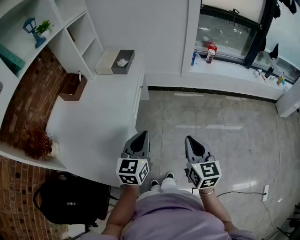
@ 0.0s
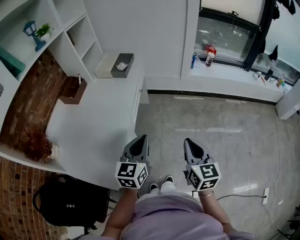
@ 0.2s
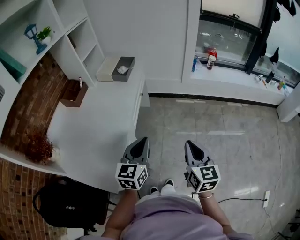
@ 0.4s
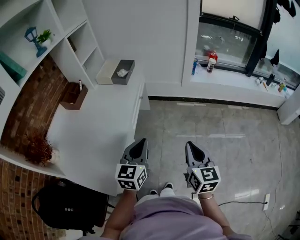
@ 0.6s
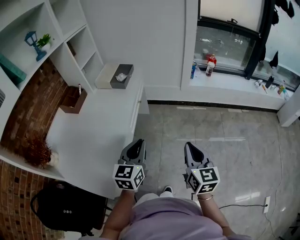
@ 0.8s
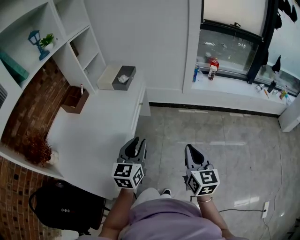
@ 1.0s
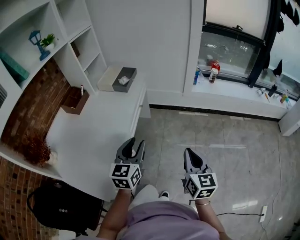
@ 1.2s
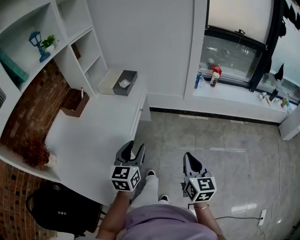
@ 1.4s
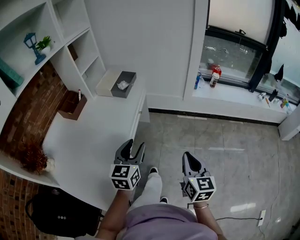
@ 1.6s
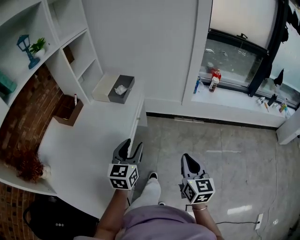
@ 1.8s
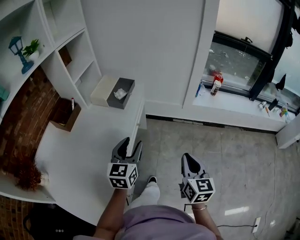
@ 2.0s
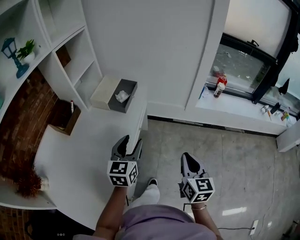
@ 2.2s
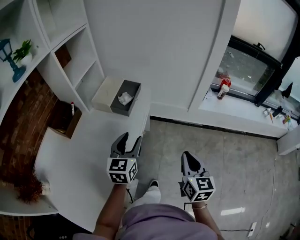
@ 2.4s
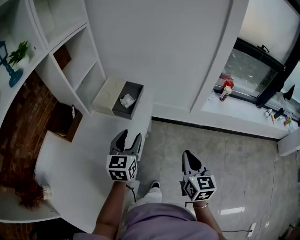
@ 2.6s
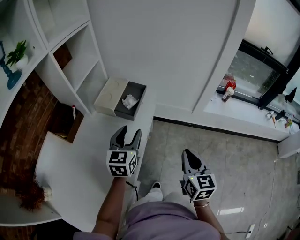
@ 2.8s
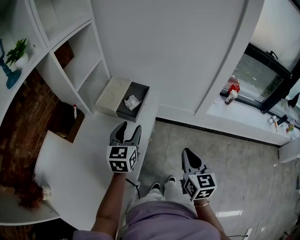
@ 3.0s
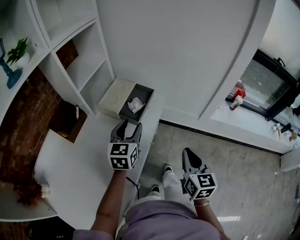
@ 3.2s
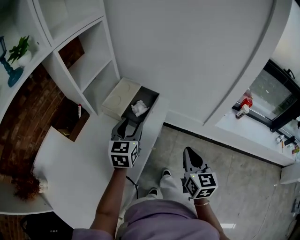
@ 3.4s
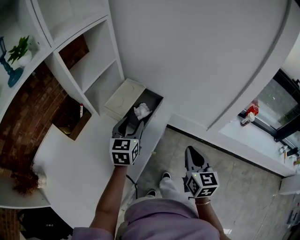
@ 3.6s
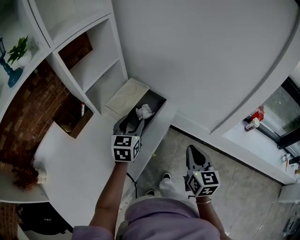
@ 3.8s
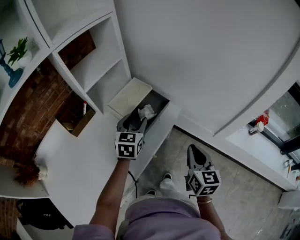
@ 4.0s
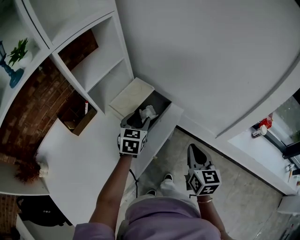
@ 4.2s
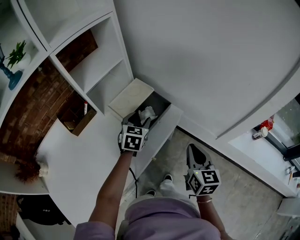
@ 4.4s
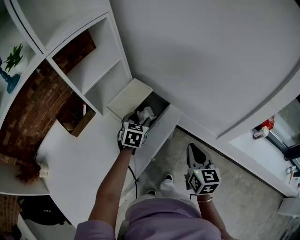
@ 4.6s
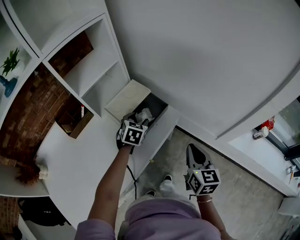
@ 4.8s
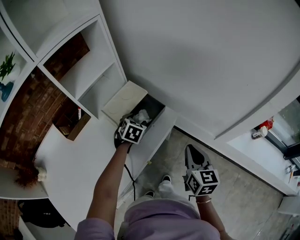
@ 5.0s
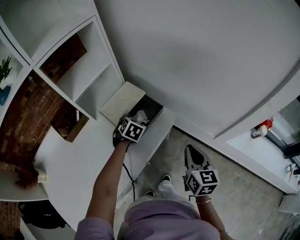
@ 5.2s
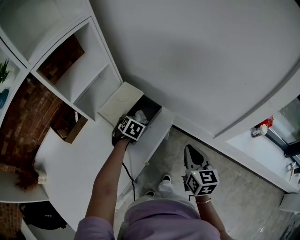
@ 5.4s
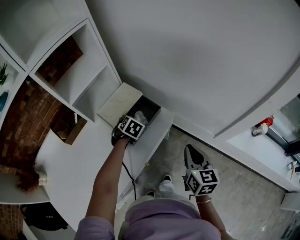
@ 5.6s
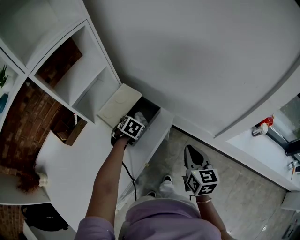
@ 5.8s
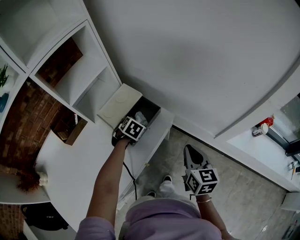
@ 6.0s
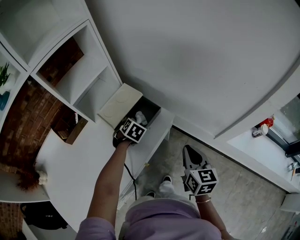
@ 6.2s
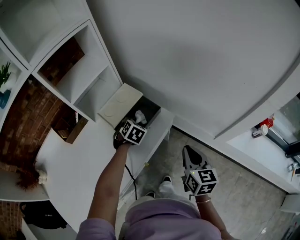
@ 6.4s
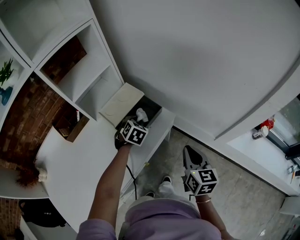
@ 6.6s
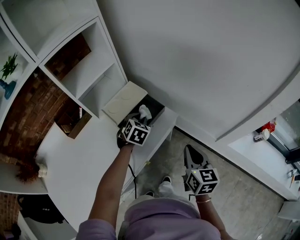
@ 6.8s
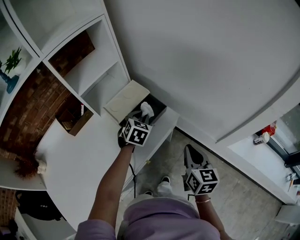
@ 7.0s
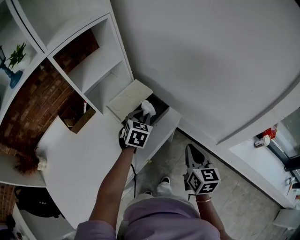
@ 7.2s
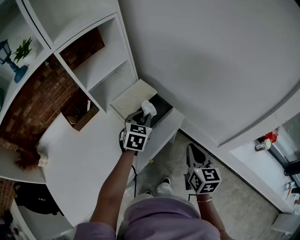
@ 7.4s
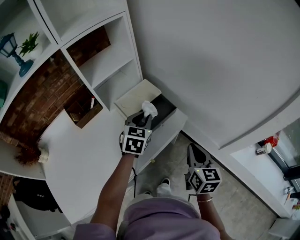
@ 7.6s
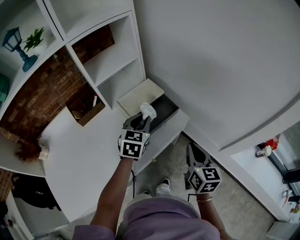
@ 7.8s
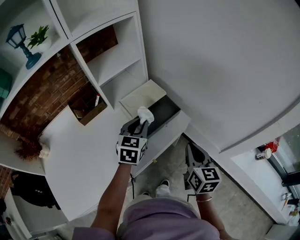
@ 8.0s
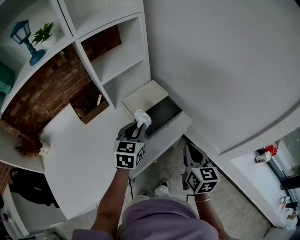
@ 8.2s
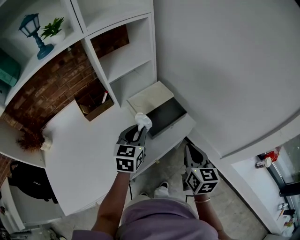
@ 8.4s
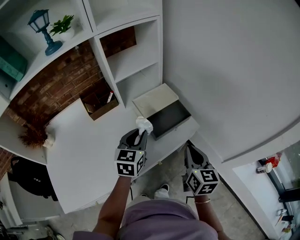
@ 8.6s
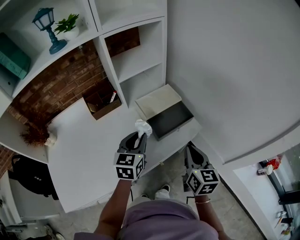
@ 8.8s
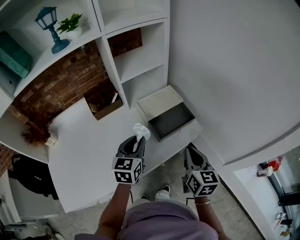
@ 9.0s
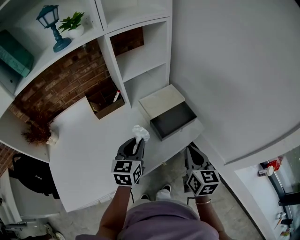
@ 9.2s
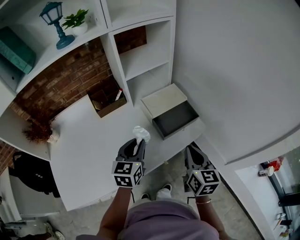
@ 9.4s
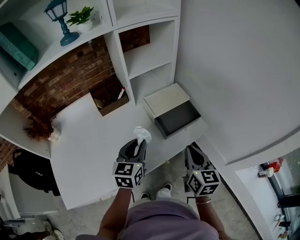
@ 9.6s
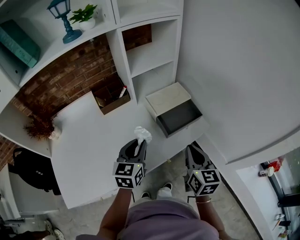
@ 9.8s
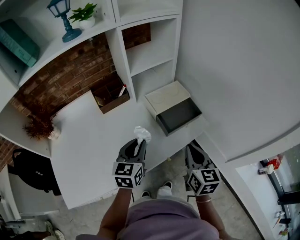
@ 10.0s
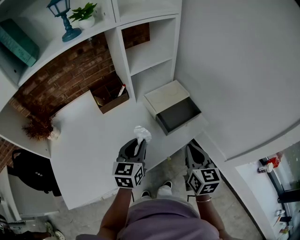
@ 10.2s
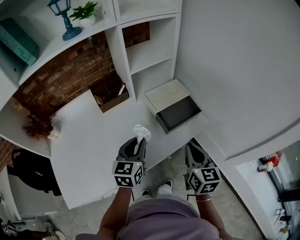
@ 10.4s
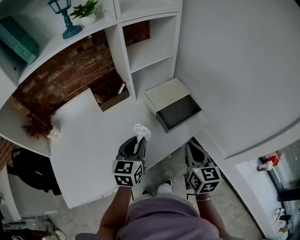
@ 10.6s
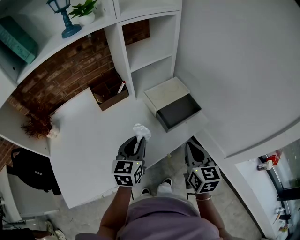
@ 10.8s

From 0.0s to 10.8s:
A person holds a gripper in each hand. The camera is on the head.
From 0.0s to 1.6s: The two grippers go about 10 cm forward. The left gripper opens.
From 1.6s to 3.0s: Both grippers move forward, approximately 30 cm.
From 3.0s to 4.6s: The left gripper heads forward and downward, covering about 20 cm, and swivels about 30 degrees, while the right gripper is displaced forward by approximately 20 cm, and rotates roughly 20 degrees.
From 4.6s to 6.2s: The left gripper heads downward, covering about 10 cm, swivels roughly 30 degrees, and closes.
From 6.2s to 7.8s: The left gripper travels upward and backward by roughly 15 cm, and tilts its fingers roughly 30 degrees upward.
From 7.8s to 9.2s: The left gripper travels to the left and backward by approximately 15 cm, and swivels roughly 20 degrees; the right gripper shifts about 10 cm to the left.
From 9.2s to 10.8s: There are only small adjustments of the grippers.

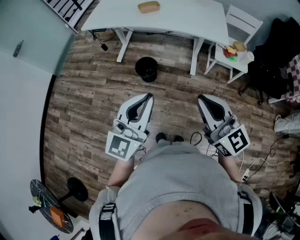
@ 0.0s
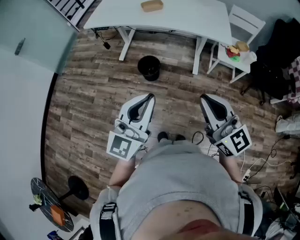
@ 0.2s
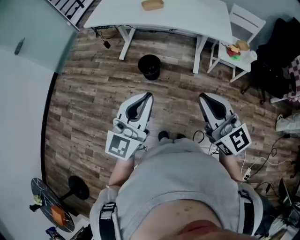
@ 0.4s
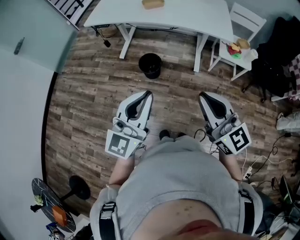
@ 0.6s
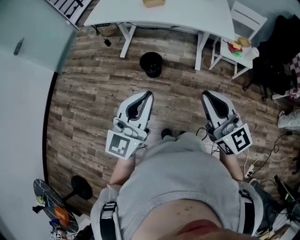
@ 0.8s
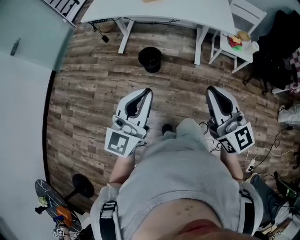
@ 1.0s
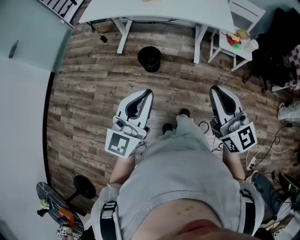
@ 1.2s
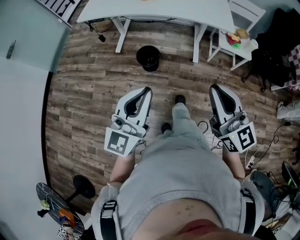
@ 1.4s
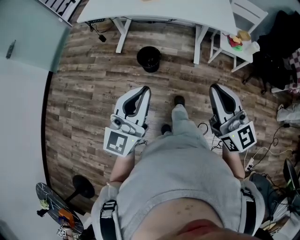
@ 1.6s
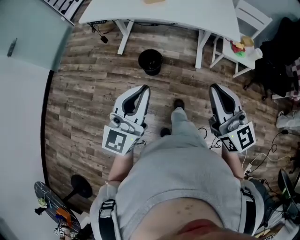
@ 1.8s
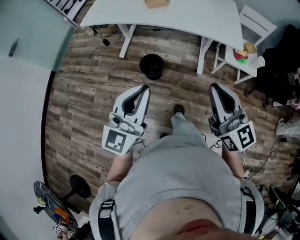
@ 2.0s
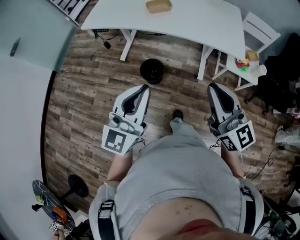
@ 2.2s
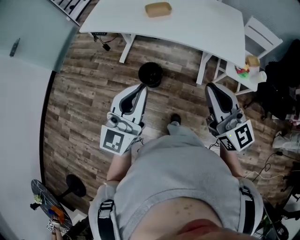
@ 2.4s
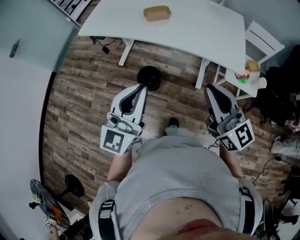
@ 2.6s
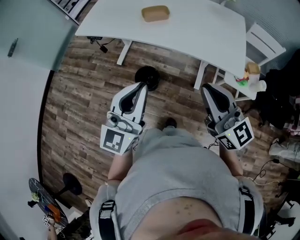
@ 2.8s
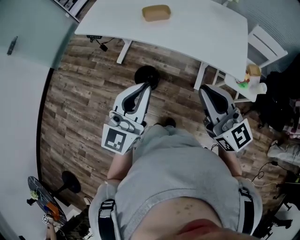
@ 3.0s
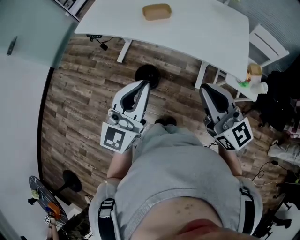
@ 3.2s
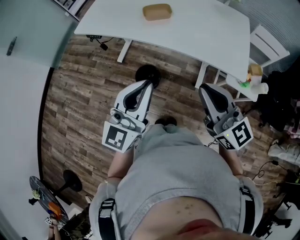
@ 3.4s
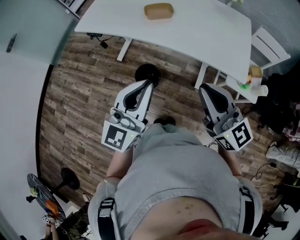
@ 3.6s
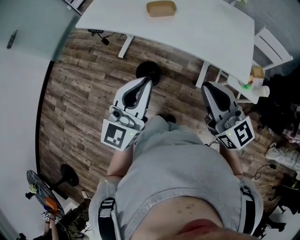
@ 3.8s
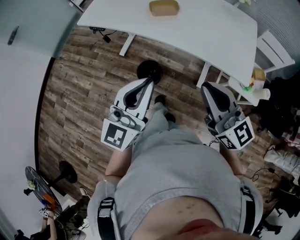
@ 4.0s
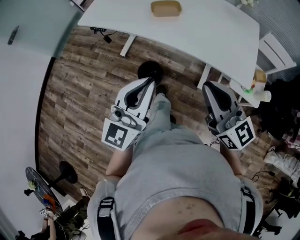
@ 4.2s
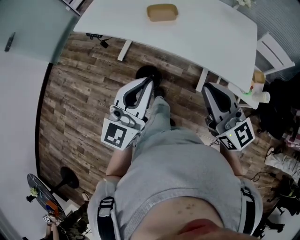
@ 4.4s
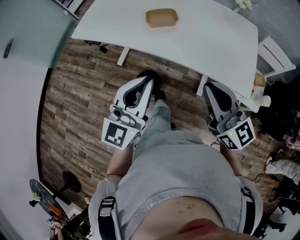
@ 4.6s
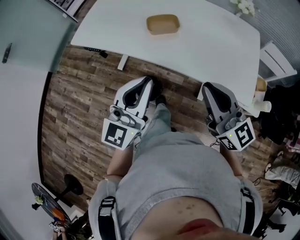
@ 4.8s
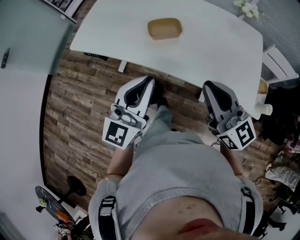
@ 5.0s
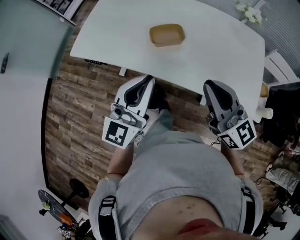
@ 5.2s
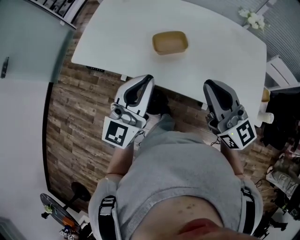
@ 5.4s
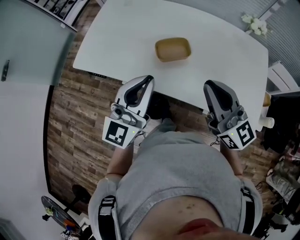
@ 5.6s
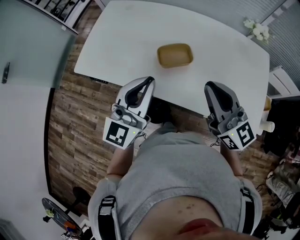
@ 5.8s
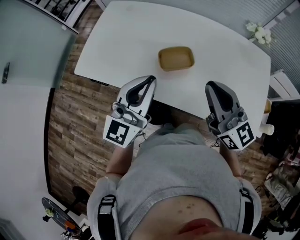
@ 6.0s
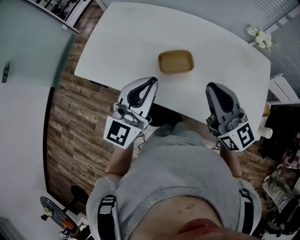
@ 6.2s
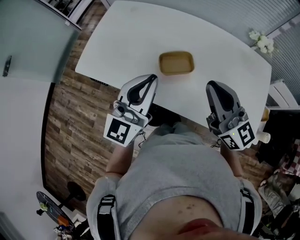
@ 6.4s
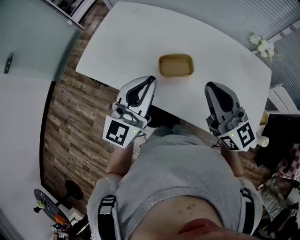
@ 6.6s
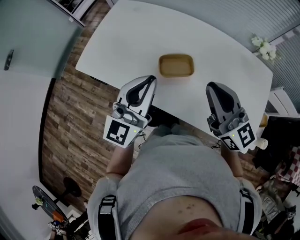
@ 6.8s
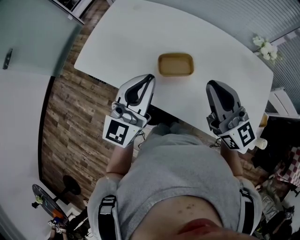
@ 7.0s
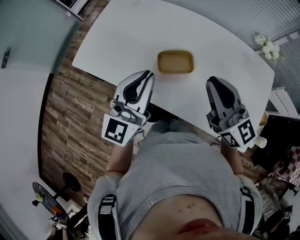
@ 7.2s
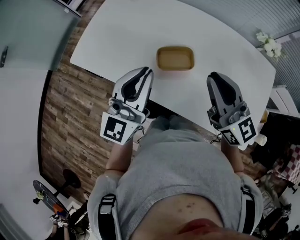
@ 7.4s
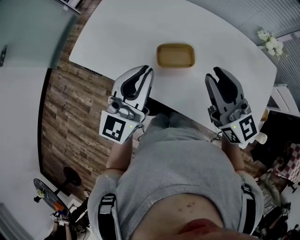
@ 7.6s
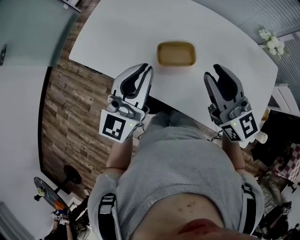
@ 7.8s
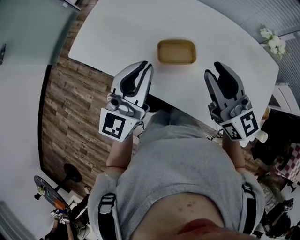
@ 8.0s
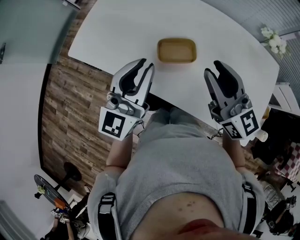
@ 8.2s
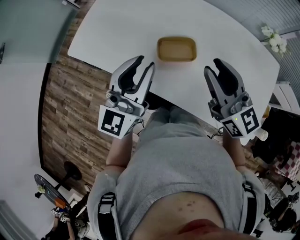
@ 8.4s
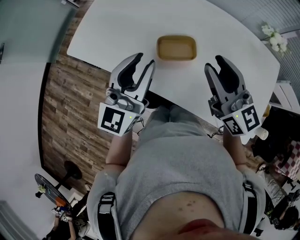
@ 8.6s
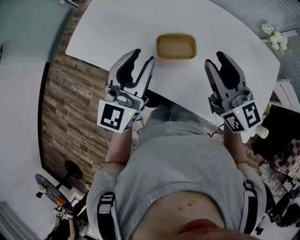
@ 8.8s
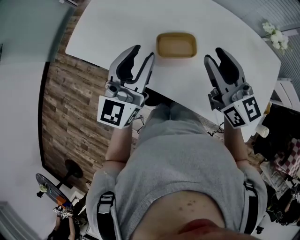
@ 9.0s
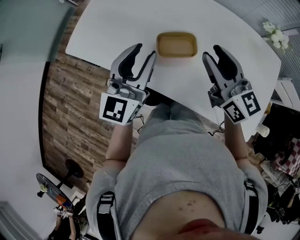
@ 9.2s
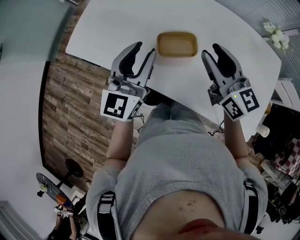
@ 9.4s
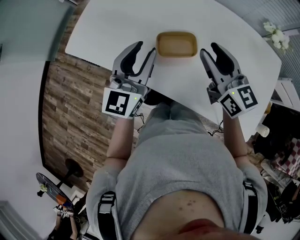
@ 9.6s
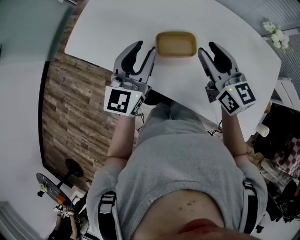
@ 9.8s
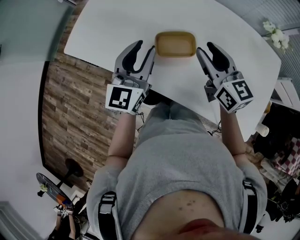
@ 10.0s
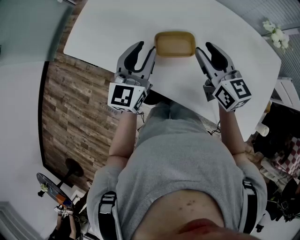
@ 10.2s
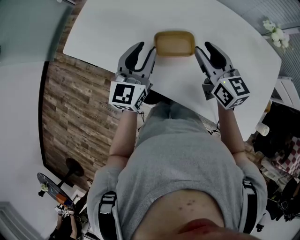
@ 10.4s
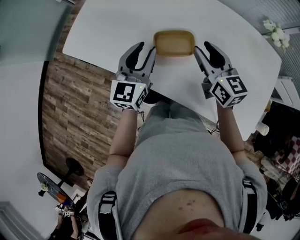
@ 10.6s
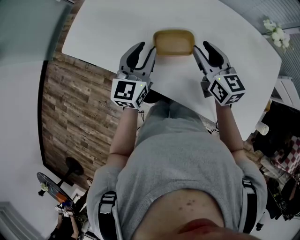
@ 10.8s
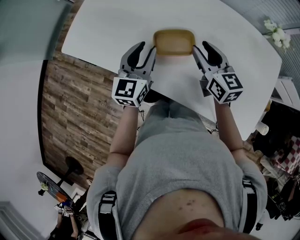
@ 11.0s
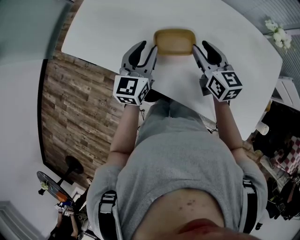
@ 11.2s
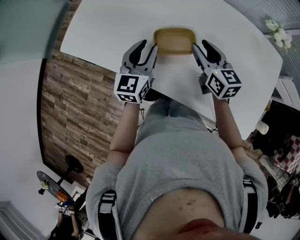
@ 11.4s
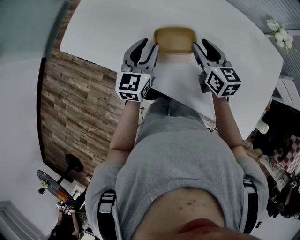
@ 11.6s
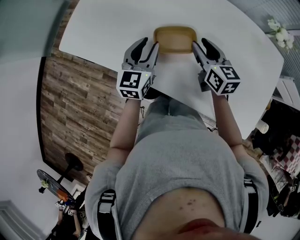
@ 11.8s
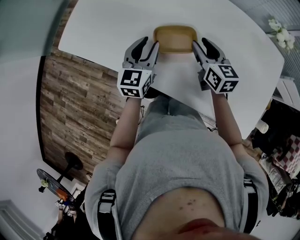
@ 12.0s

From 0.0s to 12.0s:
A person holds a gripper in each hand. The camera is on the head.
From 0.0s to 1.6s: The left gripper travels to the left by some 5 cm.
From 1.6s to 3.0s: The two grippers go about 25 cm forward.
From 3.0s to 4.4s: The grippers both shift forward by roughly 5 cm.
From 4.4s to 6.0s: Both grippers travel together forward, about 30 cm.
From 6.0s to 7.6s: The right gripper moves forward, roughly 5 cm.
From 7.6s to 9.0s: The left gripper opens up.
From 9.0s to 10.4s: The two grippers go about 10 cm downward.
From 10.4s to 12.0s: Both grippers travel together downward, about 10 cm.

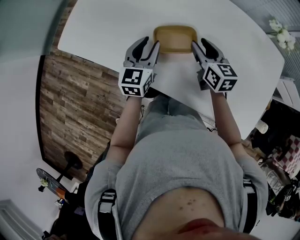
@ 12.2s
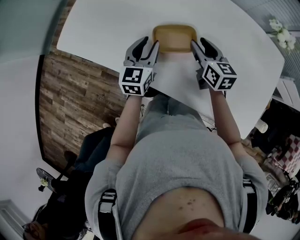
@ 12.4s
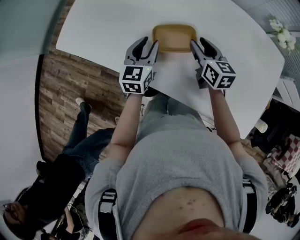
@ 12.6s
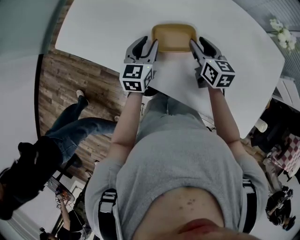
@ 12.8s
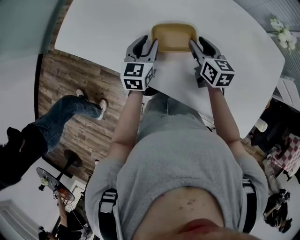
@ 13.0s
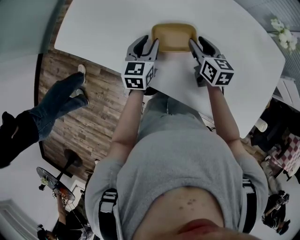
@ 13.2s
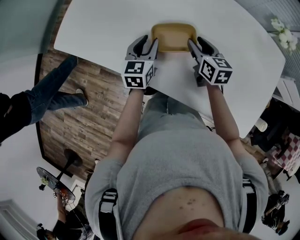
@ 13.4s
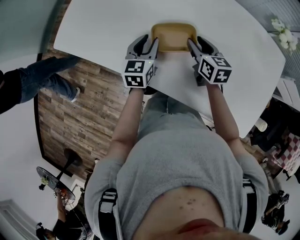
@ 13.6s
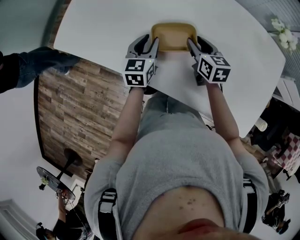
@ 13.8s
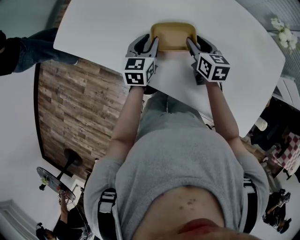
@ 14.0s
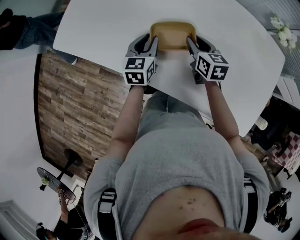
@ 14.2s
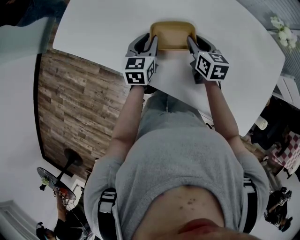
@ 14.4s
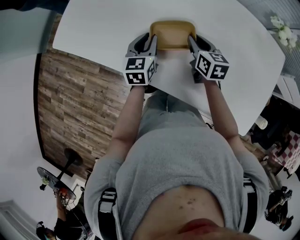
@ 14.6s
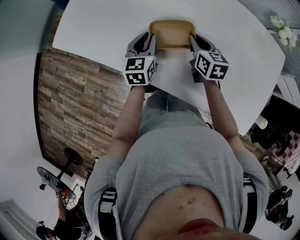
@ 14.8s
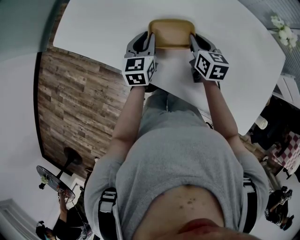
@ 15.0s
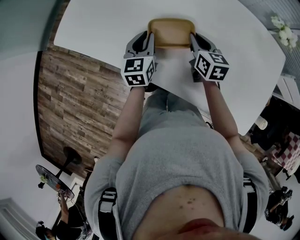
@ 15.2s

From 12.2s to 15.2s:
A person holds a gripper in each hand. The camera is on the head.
From 12.2s to 13.8s: The left gripper shifts approximately 5 cm downward, while the right gripper shifts by approximately 5 cm.
From 13.8s to 15.2s: The right gripper closes its fingers.
